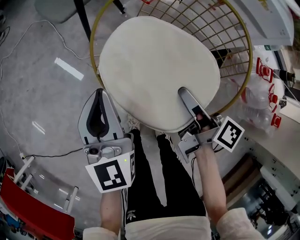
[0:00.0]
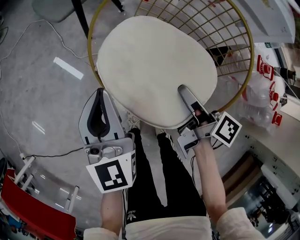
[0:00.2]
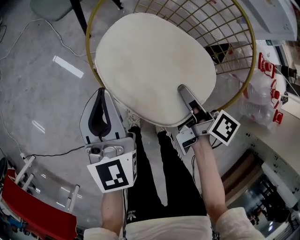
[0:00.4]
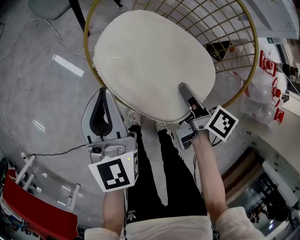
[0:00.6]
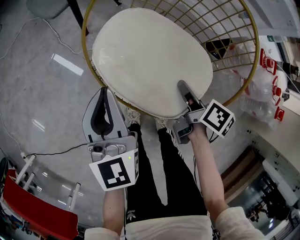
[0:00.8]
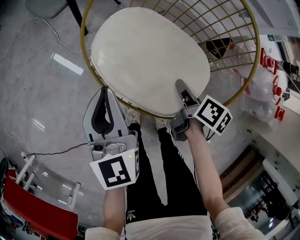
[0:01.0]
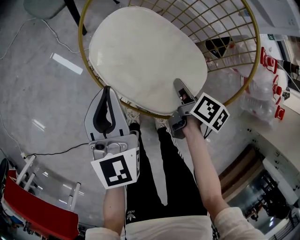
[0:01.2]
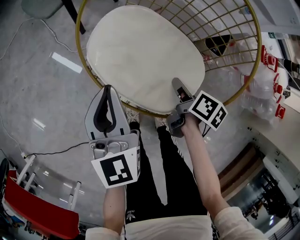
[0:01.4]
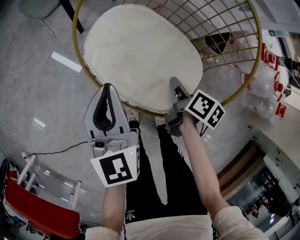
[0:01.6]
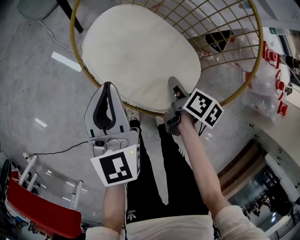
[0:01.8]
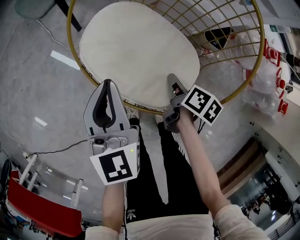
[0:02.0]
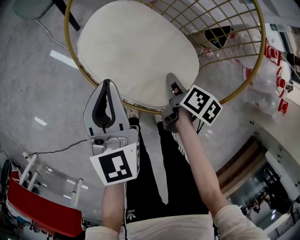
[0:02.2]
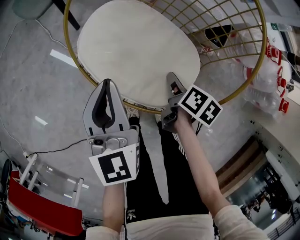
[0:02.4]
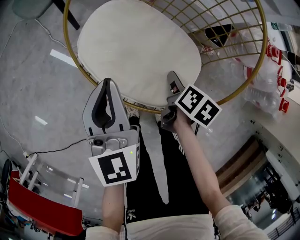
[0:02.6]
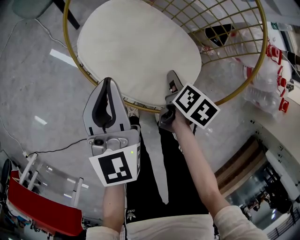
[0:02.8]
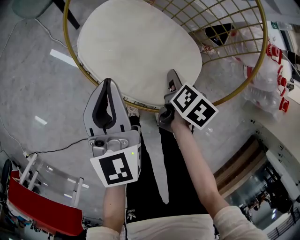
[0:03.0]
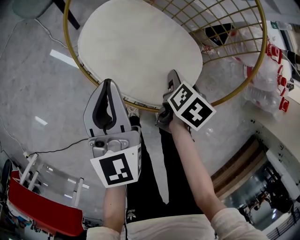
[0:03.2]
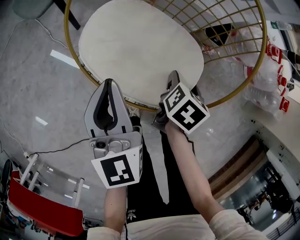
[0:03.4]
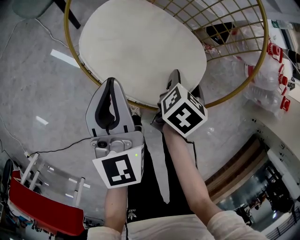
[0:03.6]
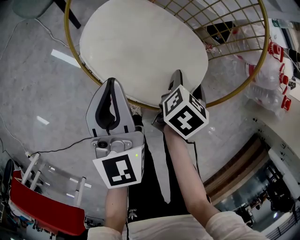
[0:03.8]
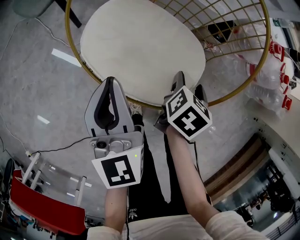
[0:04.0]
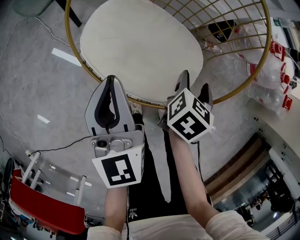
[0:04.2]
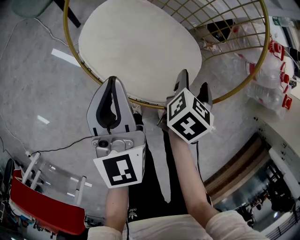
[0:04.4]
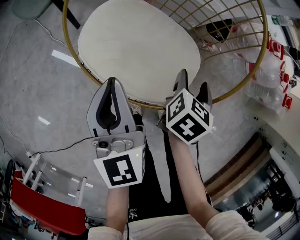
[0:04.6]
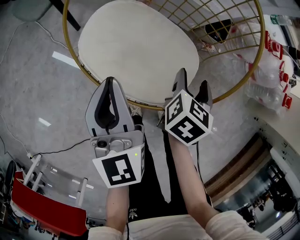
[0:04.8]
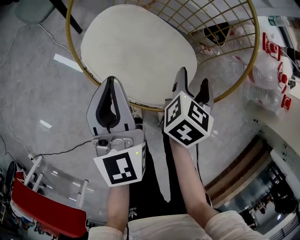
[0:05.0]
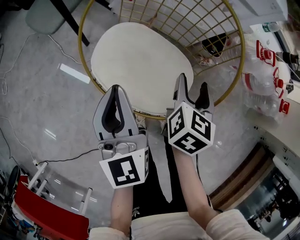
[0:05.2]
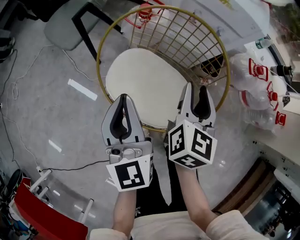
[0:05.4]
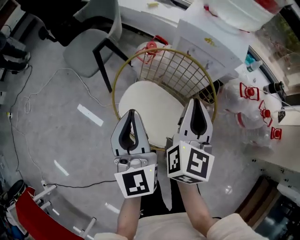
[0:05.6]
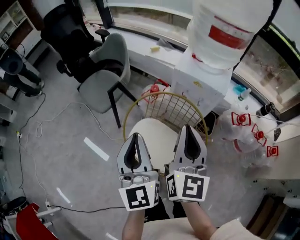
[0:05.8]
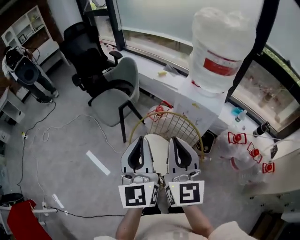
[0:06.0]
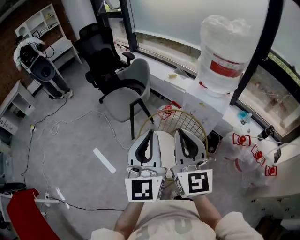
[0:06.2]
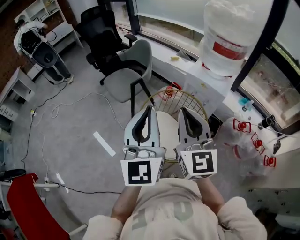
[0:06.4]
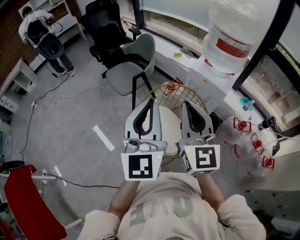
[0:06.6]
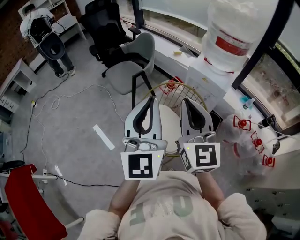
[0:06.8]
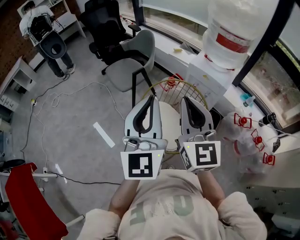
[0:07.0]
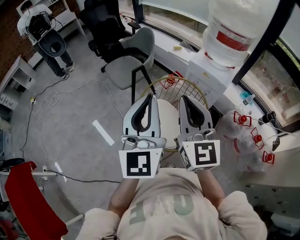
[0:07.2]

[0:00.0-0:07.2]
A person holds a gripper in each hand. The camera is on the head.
0:00.0 to 0:01.4: The left gripper is displaced downward by approximately 5 cm. The right gripper goes about 15 cm downward, and tips its fingers downward by some 30 degrees.
0:01.4 to 0:02.8: The right gripper rotates approximately 20 degrees, and opens.
0:02.8 to 0:04.4: The right gripper travels upward by approximately 5 cm, and rotates about 30 degrees.
0:04.4 to 0:05.8: Both grippers move upward, some 40 cm. The left gripper changes its angle by approximately 20 degrees; the right gripper angles its fingers upward, by about 50 degrees, and closes up.
0:05.8 to 0:07.2: The left gripper heads upward and backward, covering about 20 cm. The right gripper heads upward, backward and to the left, covering about 15 cm, and swivels some 30 degrees.

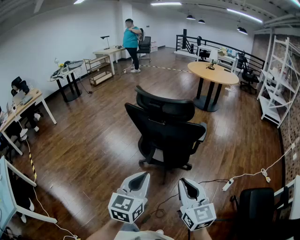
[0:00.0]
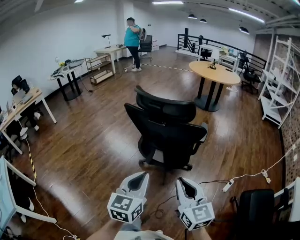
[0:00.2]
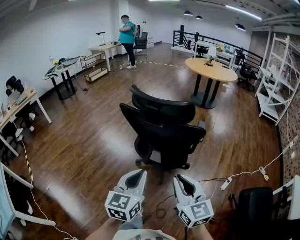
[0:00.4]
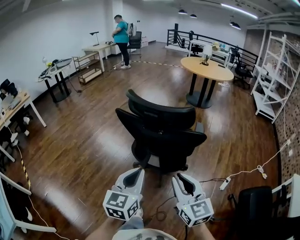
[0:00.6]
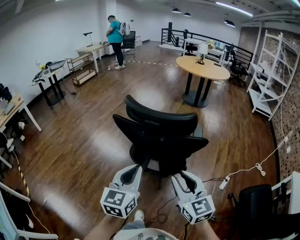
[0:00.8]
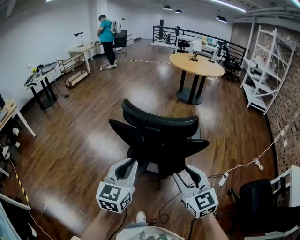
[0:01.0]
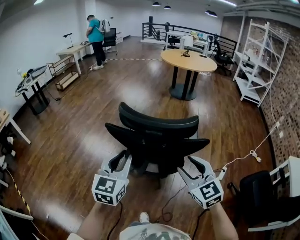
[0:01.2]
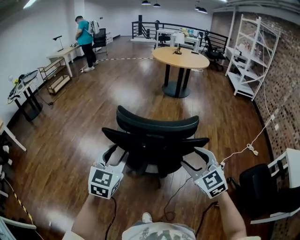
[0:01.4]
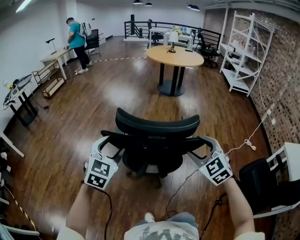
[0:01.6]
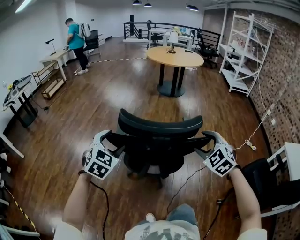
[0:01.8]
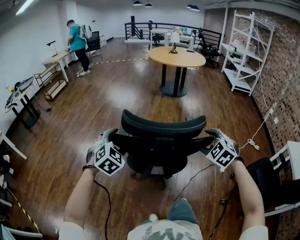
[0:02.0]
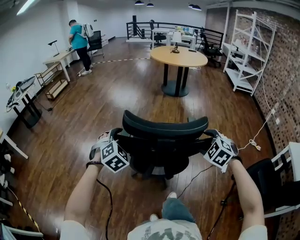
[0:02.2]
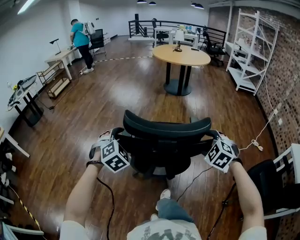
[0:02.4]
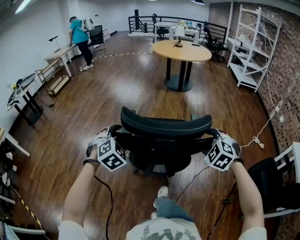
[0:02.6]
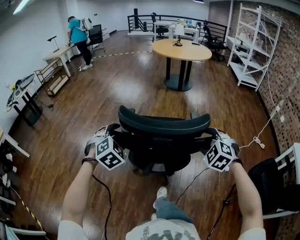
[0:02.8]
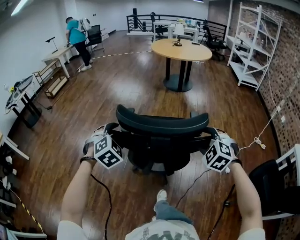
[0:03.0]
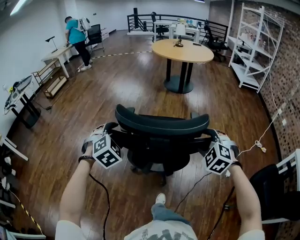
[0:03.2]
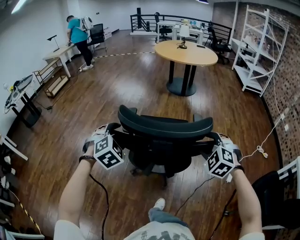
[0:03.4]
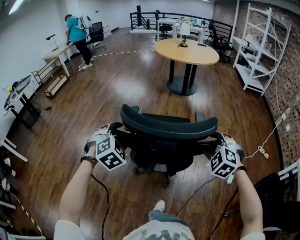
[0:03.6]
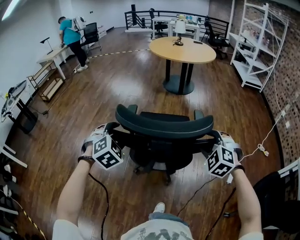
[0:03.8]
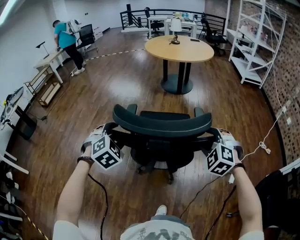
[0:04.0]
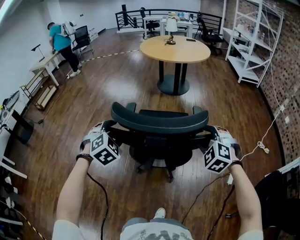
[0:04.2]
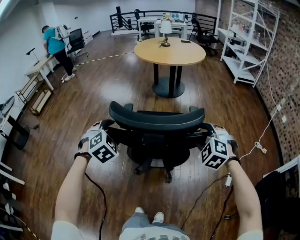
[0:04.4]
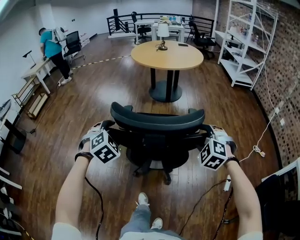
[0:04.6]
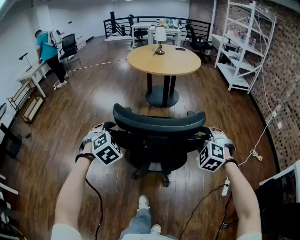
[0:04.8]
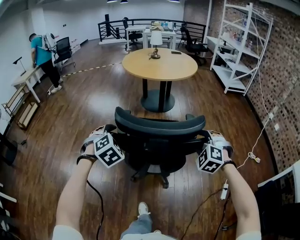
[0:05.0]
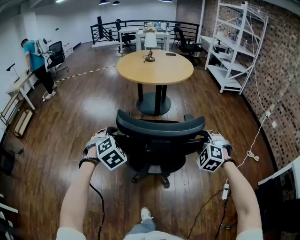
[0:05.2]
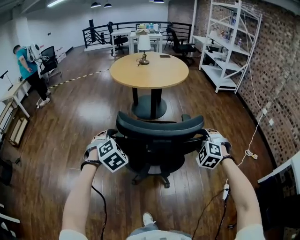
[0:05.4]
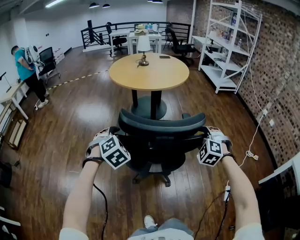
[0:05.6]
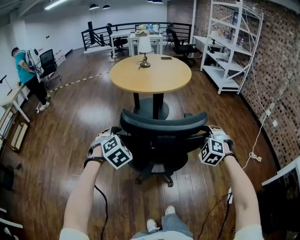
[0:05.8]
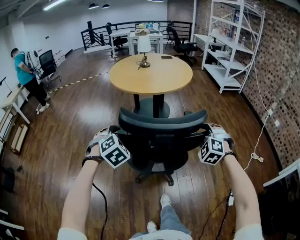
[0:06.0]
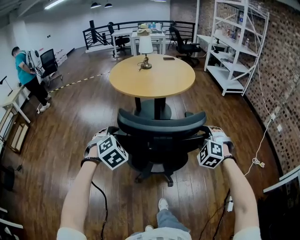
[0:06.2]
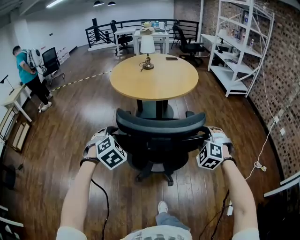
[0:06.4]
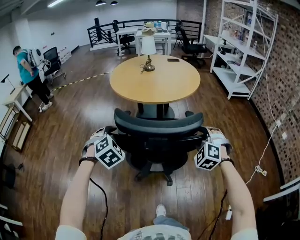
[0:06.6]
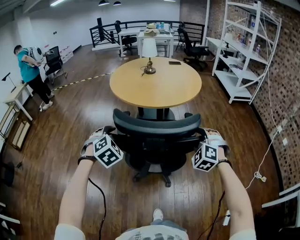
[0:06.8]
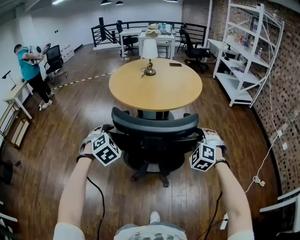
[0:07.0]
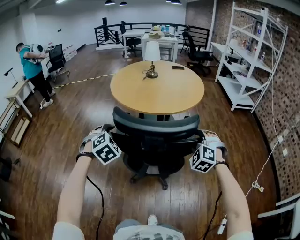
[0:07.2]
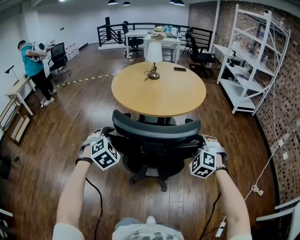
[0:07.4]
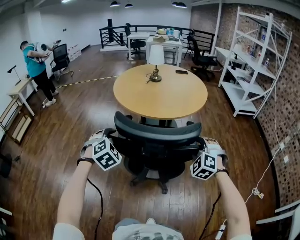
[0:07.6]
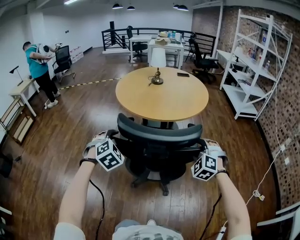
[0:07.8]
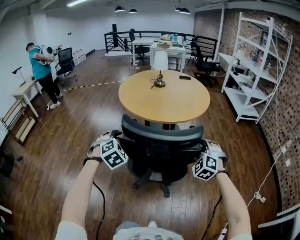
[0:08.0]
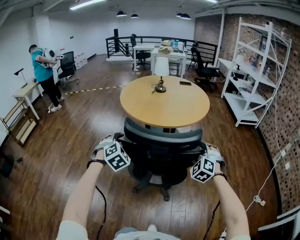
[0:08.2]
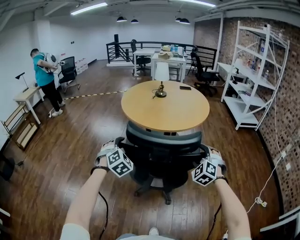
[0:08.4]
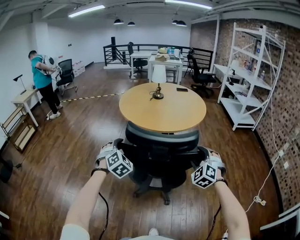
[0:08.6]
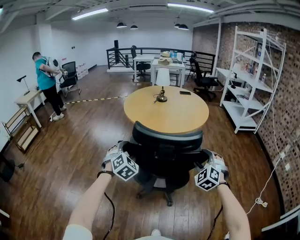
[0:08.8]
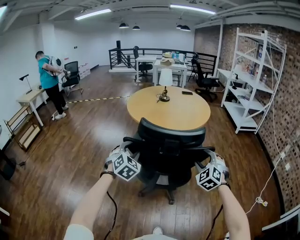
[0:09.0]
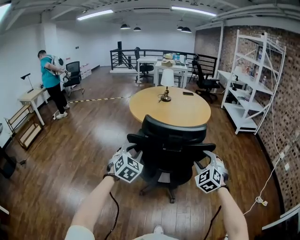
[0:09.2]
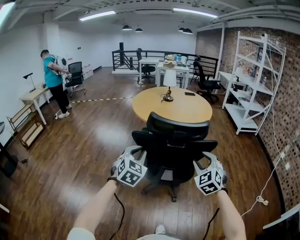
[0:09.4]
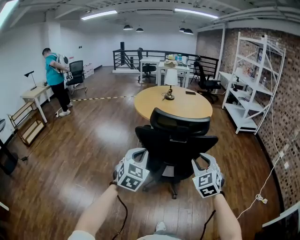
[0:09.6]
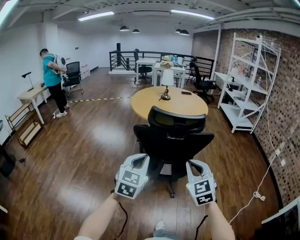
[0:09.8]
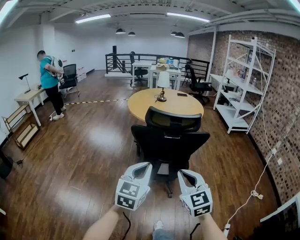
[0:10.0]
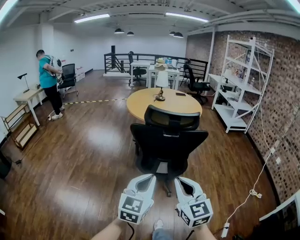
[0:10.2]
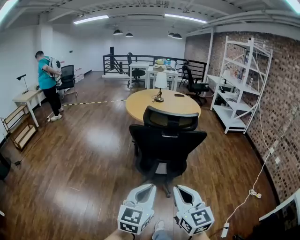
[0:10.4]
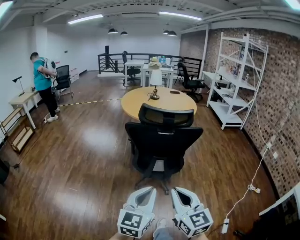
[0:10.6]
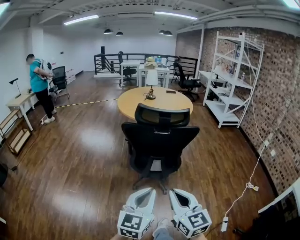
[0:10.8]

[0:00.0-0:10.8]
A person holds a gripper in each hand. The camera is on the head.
0:00.0 to 0:01.6: The right gripper shifts roughly 25 cm forward, rotates about 40 degrees, and opens its fingers, while the left gripper is displaced forward and to the left by about 35 cm, changes its angle by approximately 40 degrees, and opens its fingers.
0:01.6 to 0:03.0: The left gripper shifts approximately 15 cm forward, and changes its angle by some 30 degrees; the right gripper travels forward and downward by approximately 15 cm, and swivels approximately 20 degrees.
0:03.0 to 0:04.6: The two grippers go some 35 cm forward.
0:04.6 to 0:06.2: Both grippers move forward, approximately 35 cm.
0:06.2 to 0:07.8: The two grippers go approximately 15 cm forward.
0:07.8 to 0:09.2: The two grippers go approximately 10 cm backward and upward. The right gripper changes its angle by some 20 degrees. The left gripper rotates some 30 degrees, and closes its fingers.
0:09.2 to 0:10.8: Both grippers travel together backward, approximately 35 cm. The right gripper rotates around the line of its fingers by about 50 degrees, clockwise from behind, and closes up, while the left gripper turns by approximately 40 degrees, and closes.

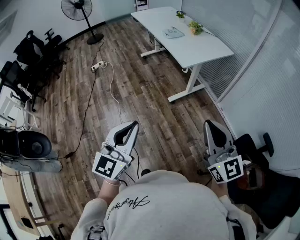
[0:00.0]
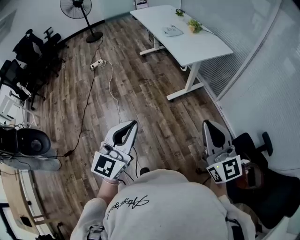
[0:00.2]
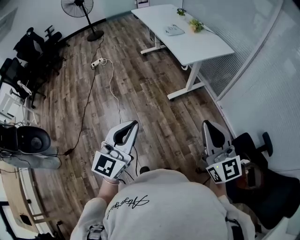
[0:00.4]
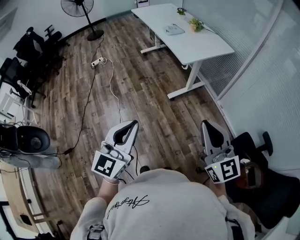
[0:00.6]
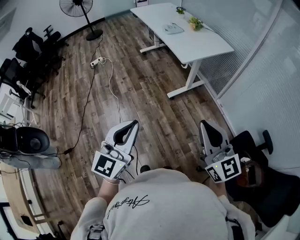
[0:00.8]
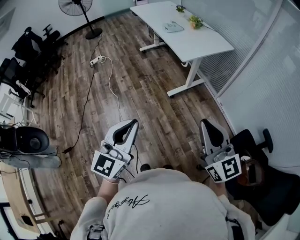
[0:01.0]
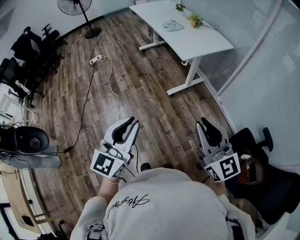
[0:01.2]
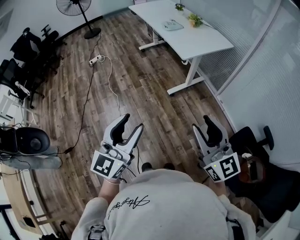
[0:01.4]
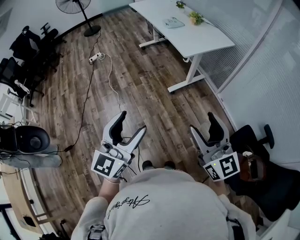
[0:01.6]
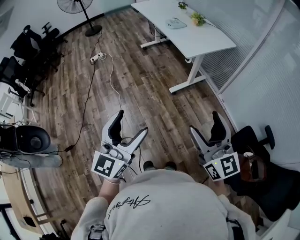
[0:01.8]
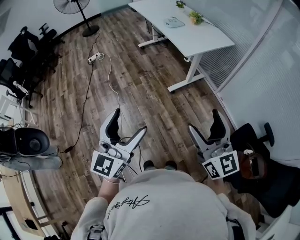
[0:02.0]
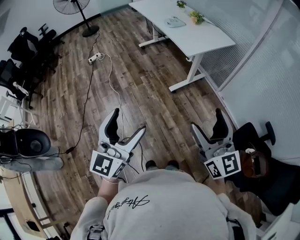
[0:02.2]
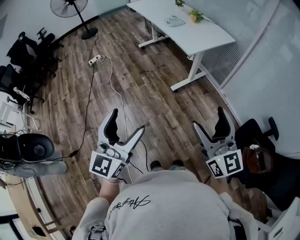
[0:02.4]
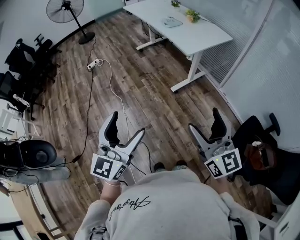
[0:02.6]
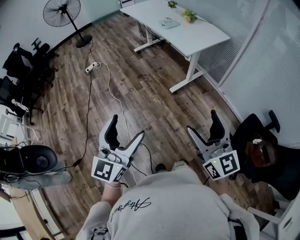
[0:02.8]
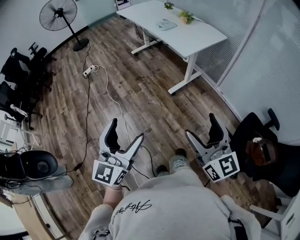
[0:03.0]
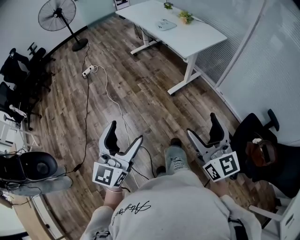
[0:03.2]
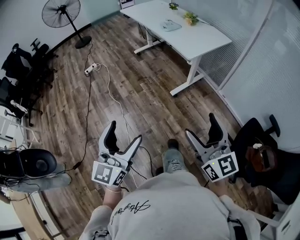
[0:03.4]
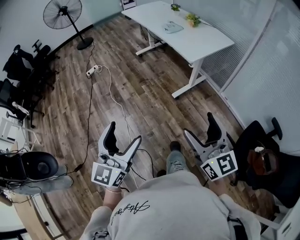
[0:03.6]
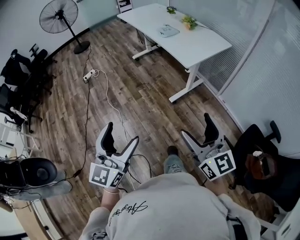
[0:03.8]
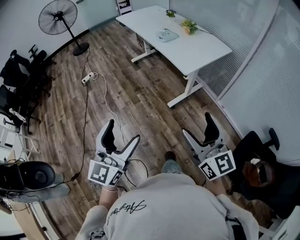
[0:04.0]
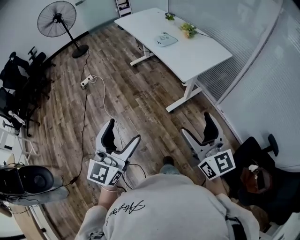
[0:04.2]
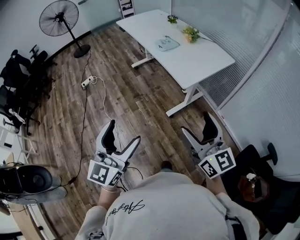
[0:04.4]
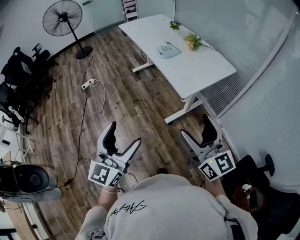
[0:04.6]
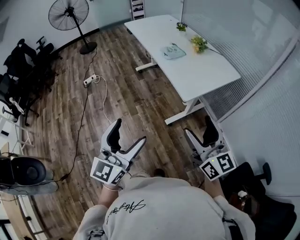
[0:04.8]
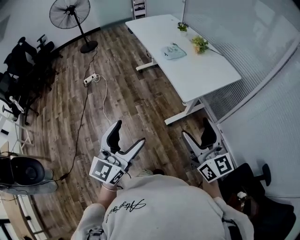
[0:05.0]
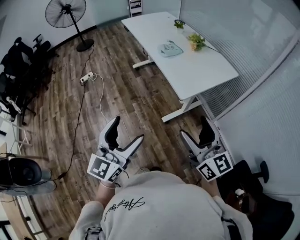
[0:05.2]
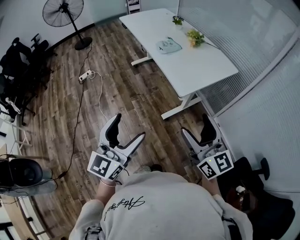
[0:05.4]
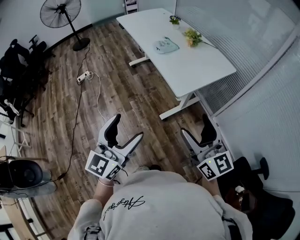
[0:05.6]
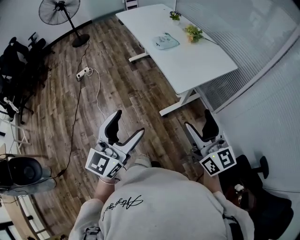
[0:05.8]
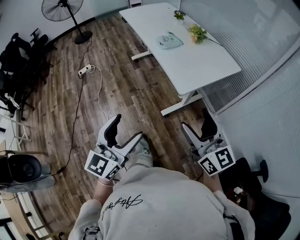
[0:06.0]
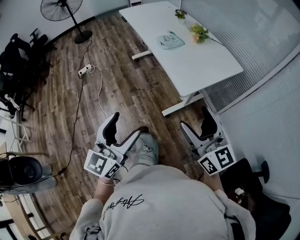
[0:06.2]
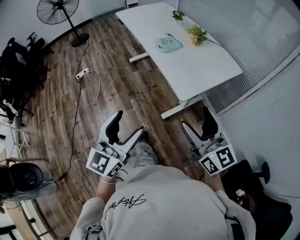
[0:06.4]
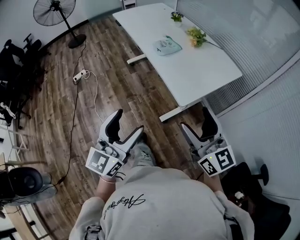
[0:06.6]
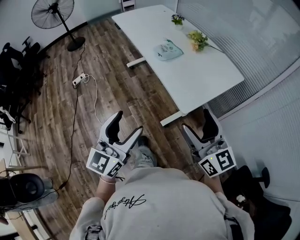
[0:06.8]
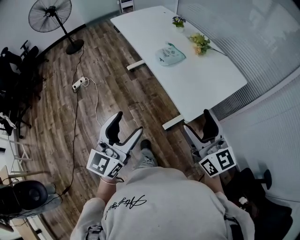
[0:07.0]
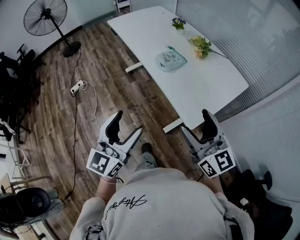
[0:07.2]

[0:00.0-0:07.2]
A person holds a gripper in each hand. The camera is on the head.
0:00.0 to 0:01.4: The right gripper opens its fingers. Meanwhile the left gripper opens.
0:01.4 to 0:02.8: Both grippers move to the left, roughly 10 cm. The left gripper opens up. The right gripper opens its fingers.
0:02.8 to 0:04.4: The grippers both shift forward by approximately 25 cm.
0:04.4 to 0:05.8: The two grippers go some 10 cm forward and to the right.
0:05.8 to 0:07.2: Both grippers move forward, about 20 cm.
